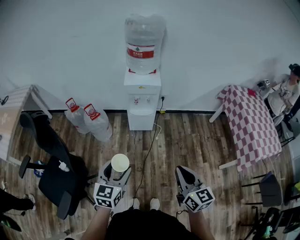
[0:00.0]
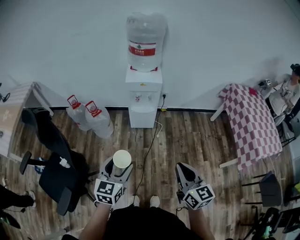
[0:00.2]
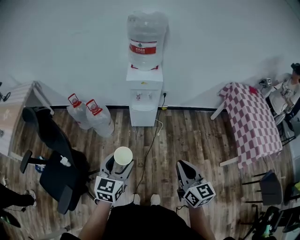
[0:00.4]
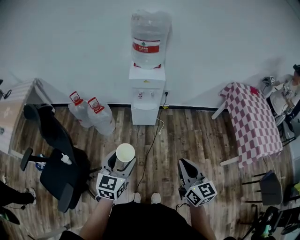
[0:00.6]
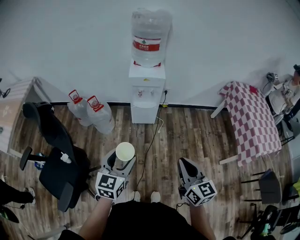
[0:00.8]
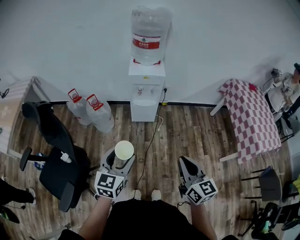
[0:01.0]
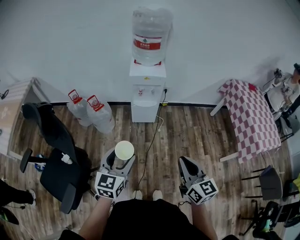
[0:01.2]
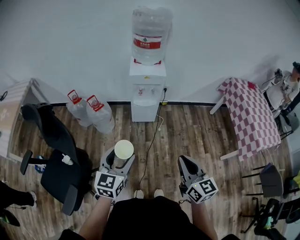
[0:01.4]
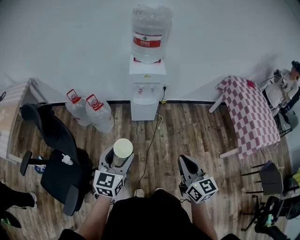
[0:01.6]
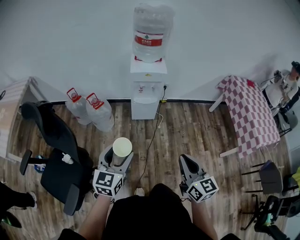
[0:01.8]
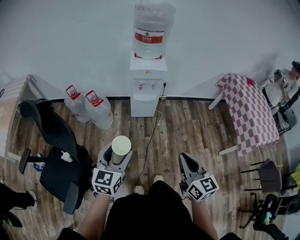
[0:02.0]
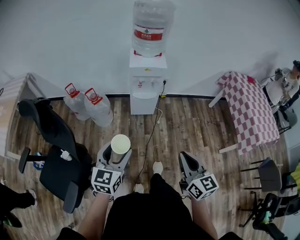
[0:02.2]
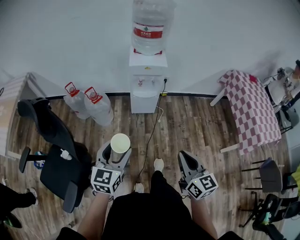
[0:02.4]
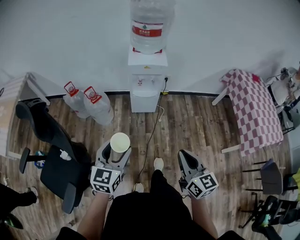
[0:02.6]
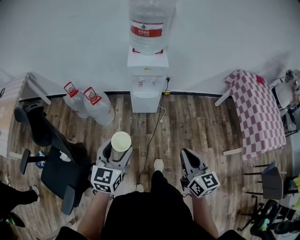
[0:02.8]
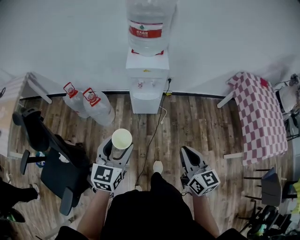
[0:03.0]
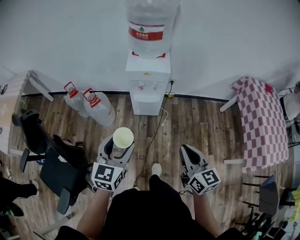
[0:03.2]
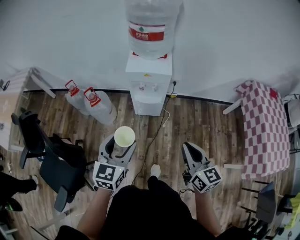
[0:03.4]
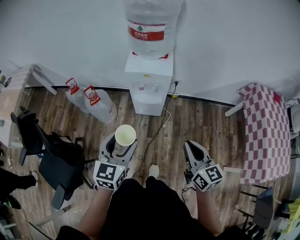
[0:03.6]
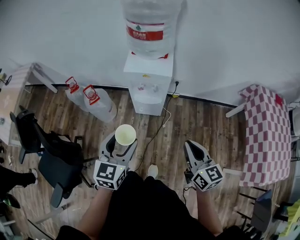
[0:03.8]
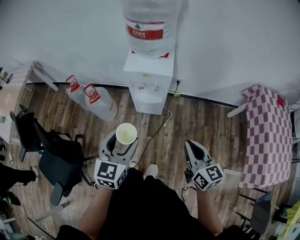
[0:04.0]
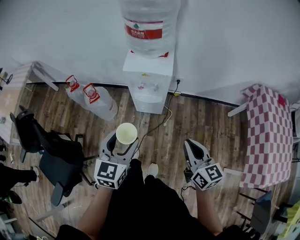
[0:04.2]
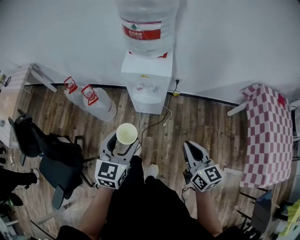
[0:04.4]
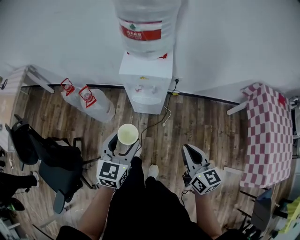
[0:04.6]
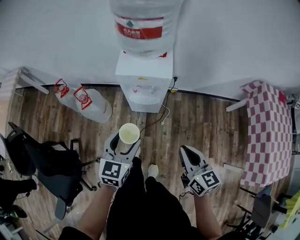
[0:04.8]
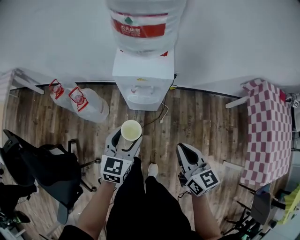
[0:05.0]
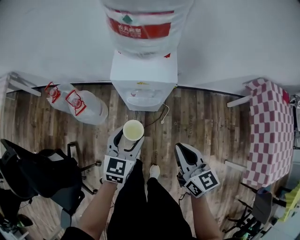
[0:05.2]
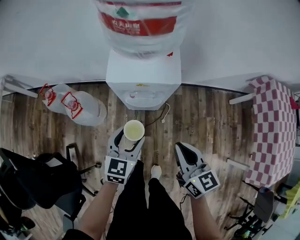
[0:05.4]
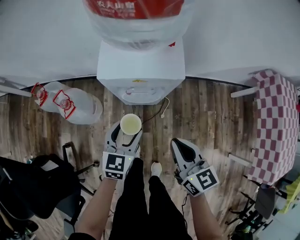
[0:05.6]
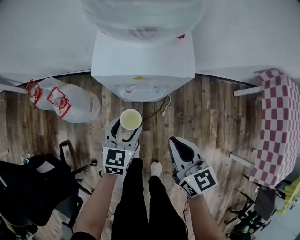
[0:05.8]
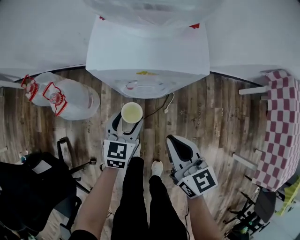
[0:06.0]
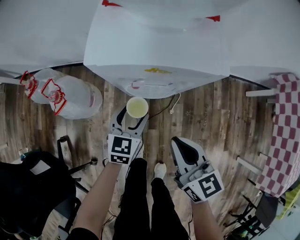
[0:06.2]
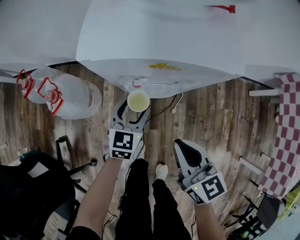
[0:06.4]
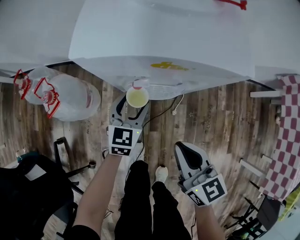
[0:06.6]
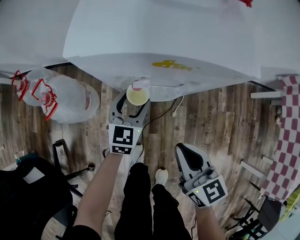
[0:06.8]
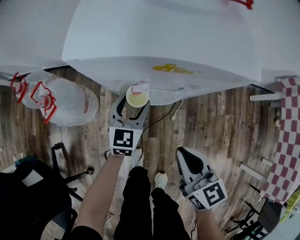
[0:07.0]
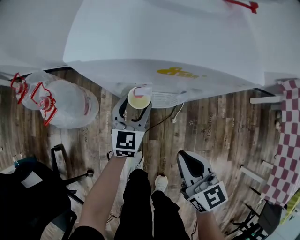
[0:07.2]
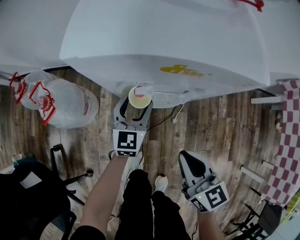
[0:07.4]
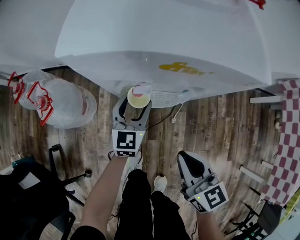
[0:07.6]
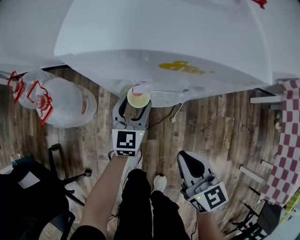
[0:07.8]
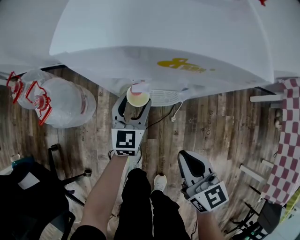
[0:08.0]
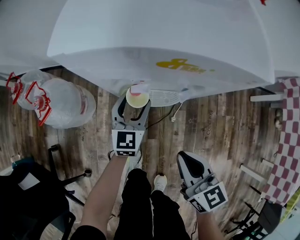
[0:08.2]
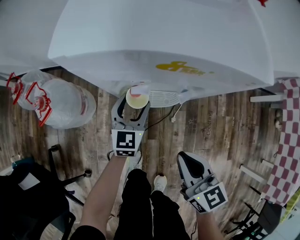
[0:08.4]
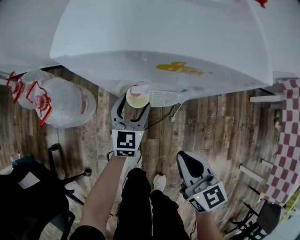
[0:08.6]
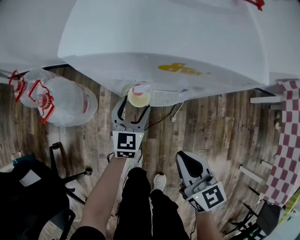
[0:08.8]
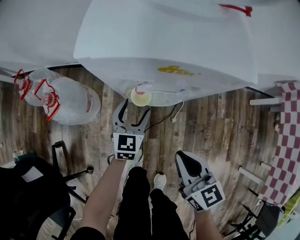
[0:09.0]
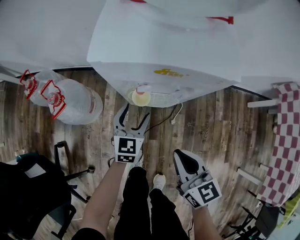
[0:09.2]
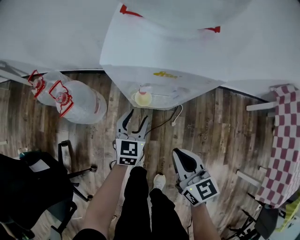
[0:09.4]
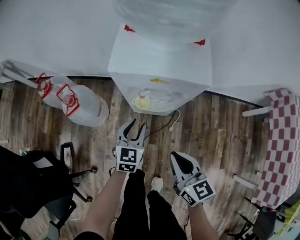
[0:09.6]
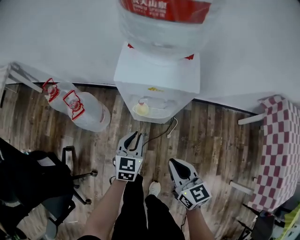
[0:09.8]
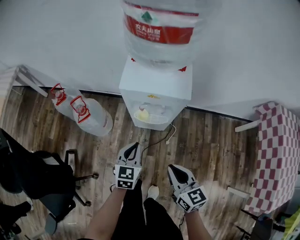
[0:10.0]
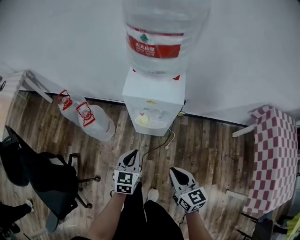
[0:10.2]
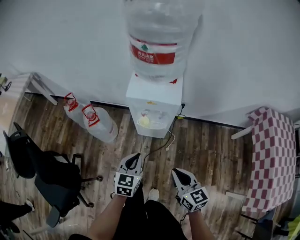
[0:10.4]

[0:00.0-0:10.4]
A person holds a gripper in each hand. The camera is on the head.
0:00.0 to 0:01.4: The grippers stay close to where they were, moving slightly.
0:01.4 to 0:03.0: The grippers both shift forward by some 15 cm.
0:03.0 to 0:04.4: The two grippers go about 20 cm forward and to the right.
0:04.4 to 0:06.0: The right gripper goes some 30 cm downward, forward and to the left; the left gripper goes approximately 40 cm downward and forward.
0:06.0 to 0:07.4: The right gripper moves downward, about 15 cm. The left gripper moves downward and forward, about 15 cm.
0:07.4 to 0:09.0: The grippers move only a little.
0:09.0 to 0:10.4: The grippers both shift upward and backward by roughly 35 cm. The left gripper closes.

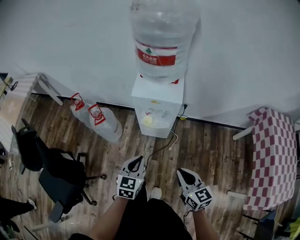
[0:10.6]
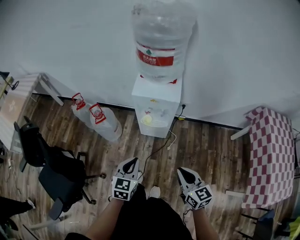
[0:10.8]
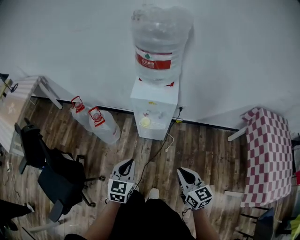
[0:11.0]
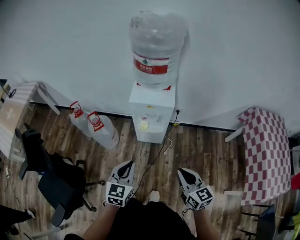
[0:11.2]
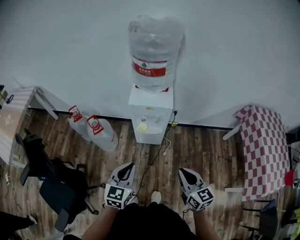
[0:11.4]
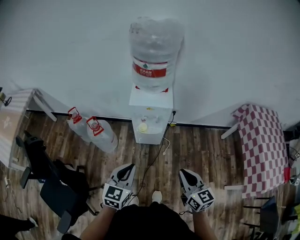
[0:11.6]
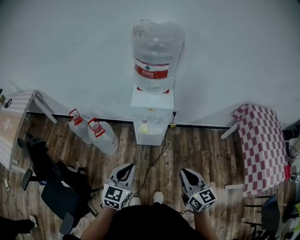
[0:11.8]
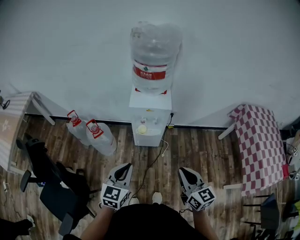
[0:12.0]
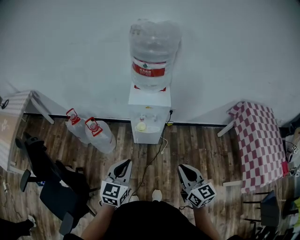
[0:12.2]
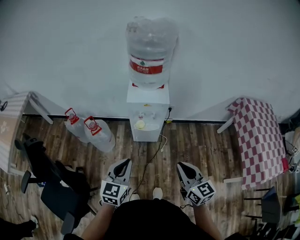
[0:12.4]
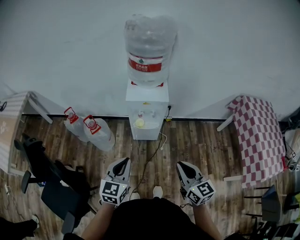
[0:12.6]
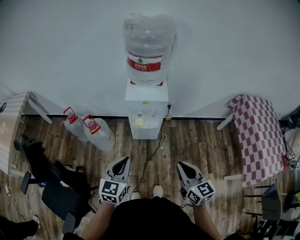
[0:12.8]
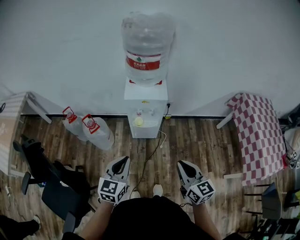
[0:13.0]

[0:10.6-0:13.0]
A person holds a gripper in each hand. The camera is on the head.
0:10.6 to 0:11.8: The left gripper heads upward, to the left and backward, covering about 15 cm; the right gripper heads upward and backward, covering some 15 cm.
0:11.8 to 0:13.0: The grippers make only small movements.

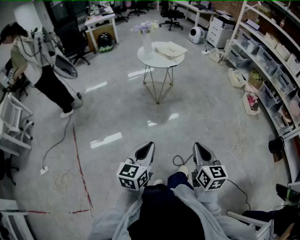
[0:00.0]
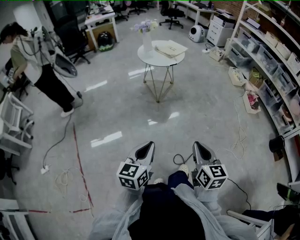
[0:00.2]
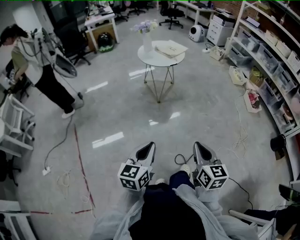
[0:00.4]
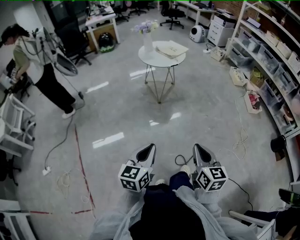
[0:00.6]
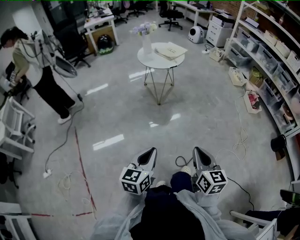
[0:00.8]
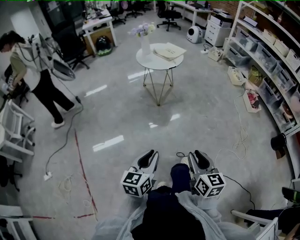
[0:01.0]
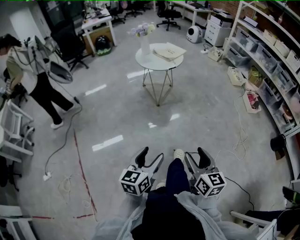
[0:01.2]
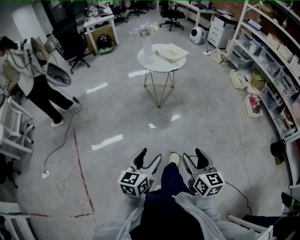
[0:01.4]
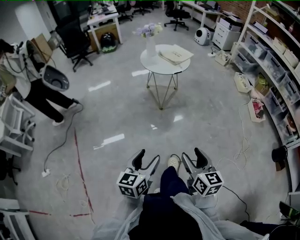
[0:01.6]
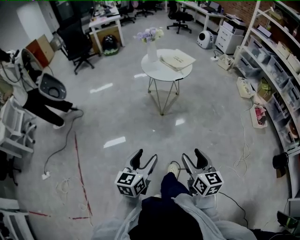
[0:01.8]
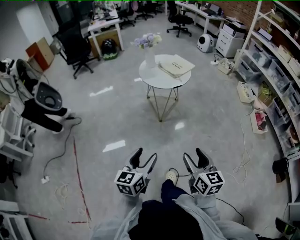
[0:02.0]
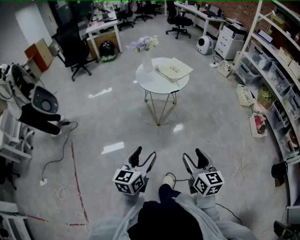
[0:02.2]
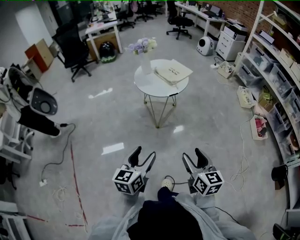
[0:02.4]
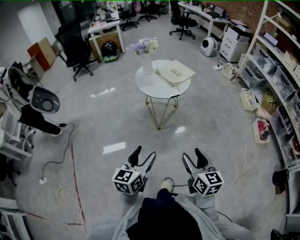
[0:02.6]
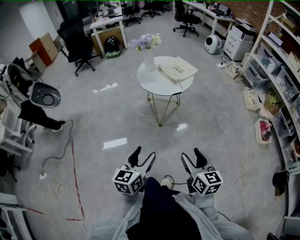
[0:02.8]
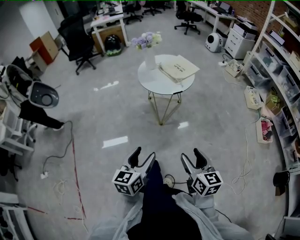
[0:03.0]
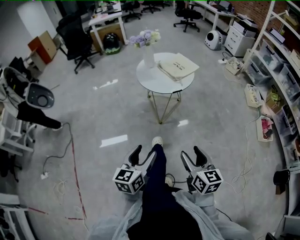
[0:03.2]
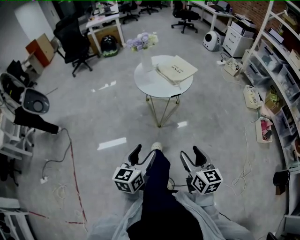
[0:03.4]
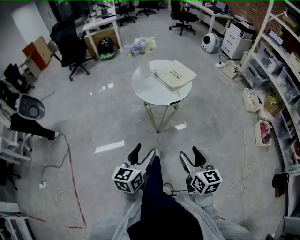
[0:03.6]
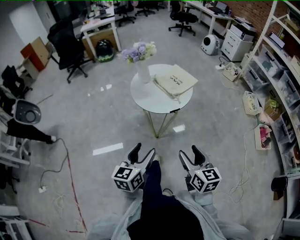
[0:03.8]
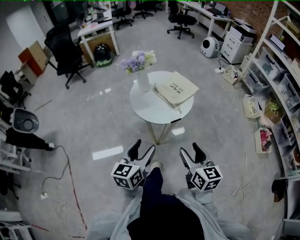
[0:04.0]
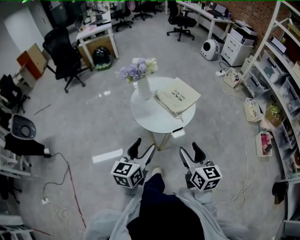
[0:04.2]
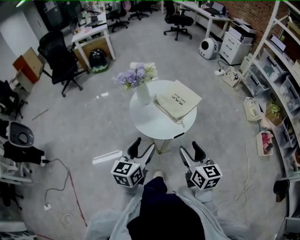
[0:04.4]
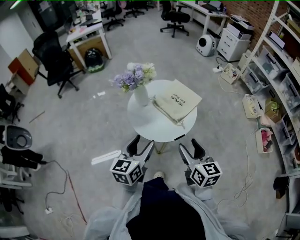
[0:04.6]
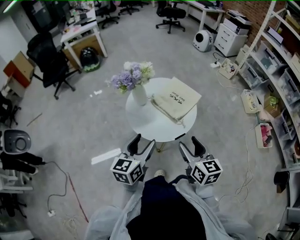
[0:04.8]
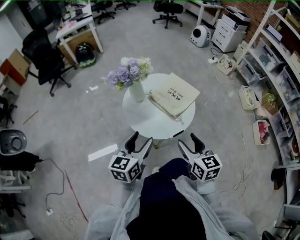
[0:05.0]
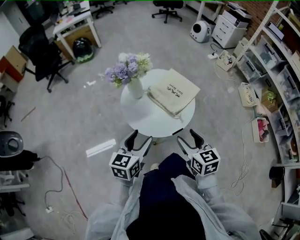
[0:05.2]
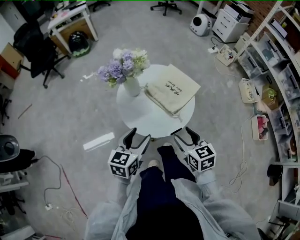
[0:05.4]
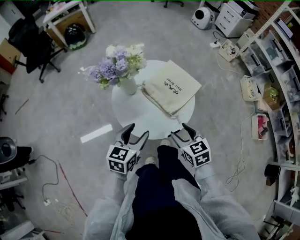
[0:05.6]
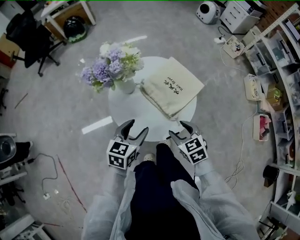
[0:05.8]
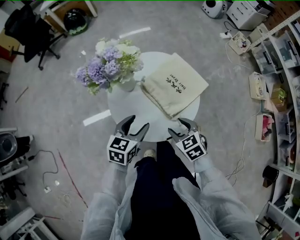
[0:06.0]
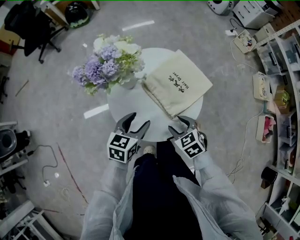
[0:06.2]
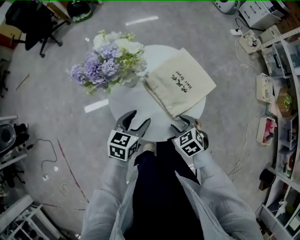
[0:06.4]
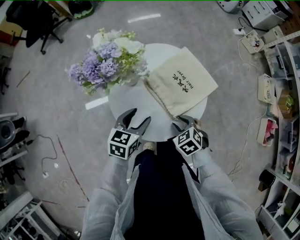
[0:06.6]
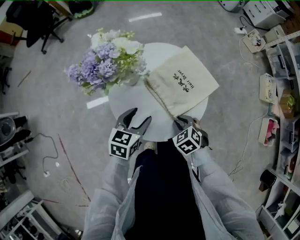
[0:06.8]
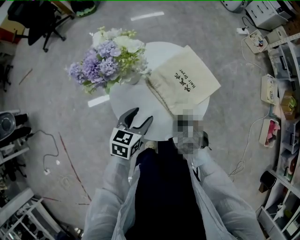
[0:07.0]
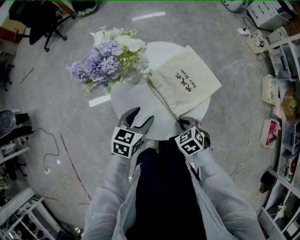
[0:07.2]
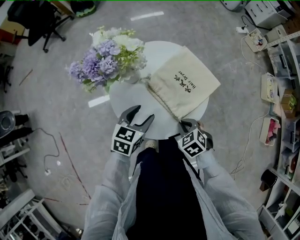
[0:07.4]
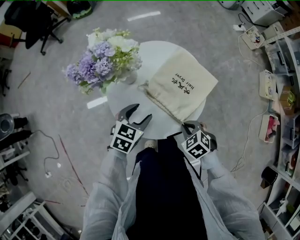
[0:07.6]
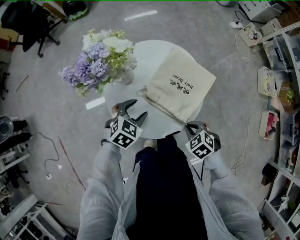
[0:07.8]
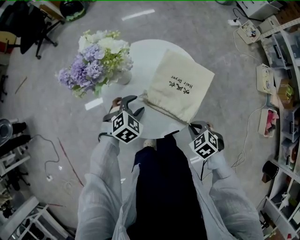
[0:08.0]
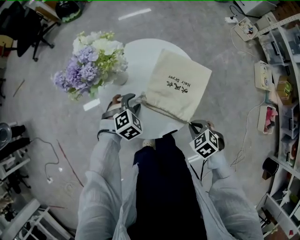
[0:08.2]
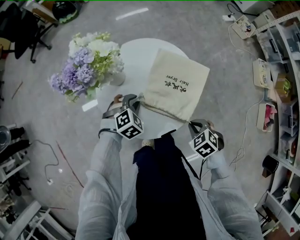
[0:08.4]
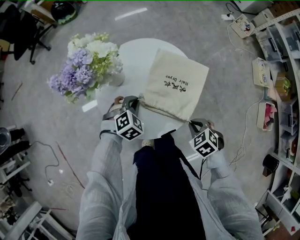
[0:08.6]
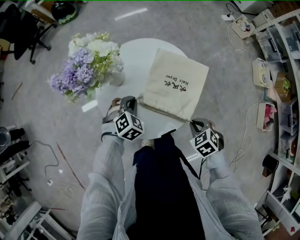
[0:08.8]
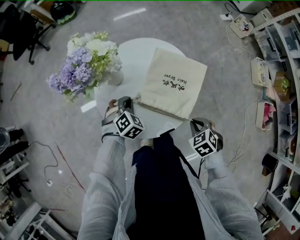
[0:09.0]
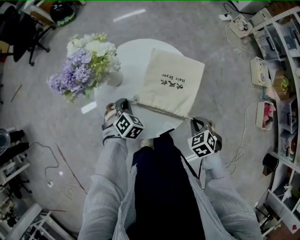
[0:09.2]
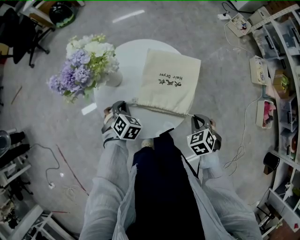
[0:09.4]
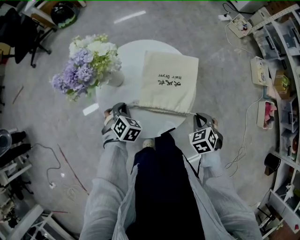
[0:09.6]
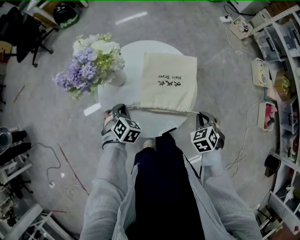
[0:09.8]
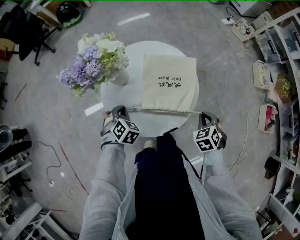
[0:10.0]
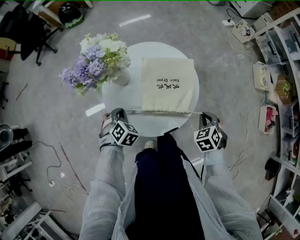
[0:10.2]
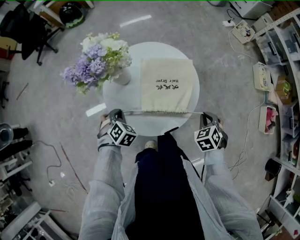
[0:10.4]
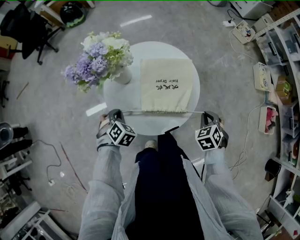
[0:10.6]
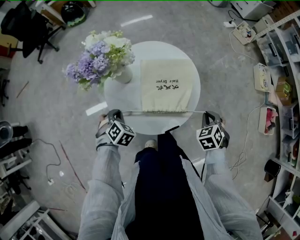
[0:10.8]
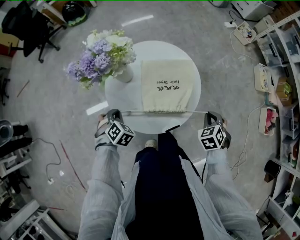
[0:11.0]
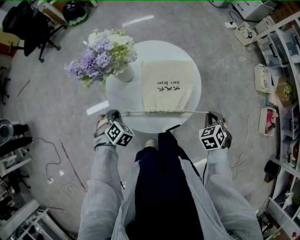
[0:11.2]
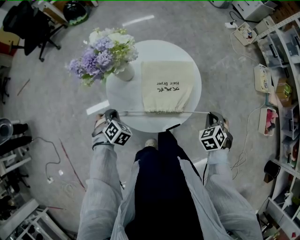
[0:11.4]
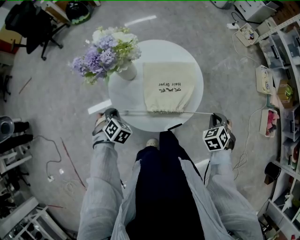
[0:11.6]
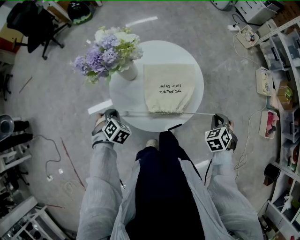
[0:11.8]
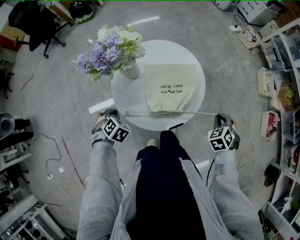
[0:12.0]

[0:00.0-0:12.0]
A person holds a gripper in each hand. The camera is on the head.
0:00.0 to 0:01.6: Both grippers move forward, approximately 10 cm. The right gripper opens up, while the left gripper opens up.
0:01.6 to 0:03.0: Both grippers travel together forward, approximately 20 cm.
0:03.0 to 0:04.4: The grippers both shift forward by approximately 35 cm.
0:04.4 to 0:06.0: The right gripper is displaced downward and forward by roughly 25 cm, and tips its fingers downward by some 40 degrees, while the left gripper moves forward and downward, roughly 25 cm, and rotates about 20 degrees.
0:06.0 to 0:07.6: The right gripper shifts approximately 5 cm downward, changes its angle by some 20 degrees, and closes; the left gripper moves roughly 5 cm.
0:07.6 to 0:09.0: The right gripper shifts approximately 10 cm to the right; the left gripper moves downward and forward, approximately 10 cm, turns by approximately 40 degrees, and closes its fingers.
0:09.0 to 0:10.4: The left gripper goes roughly 10 cm to the left, while the right gripper shifts by roughly 5 cm.
0:10.4 to 0:12.0: The right gripper changes place by about 5 cm, while the left gripper heads to the left, covering roughly 5 cm.
